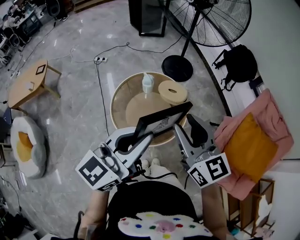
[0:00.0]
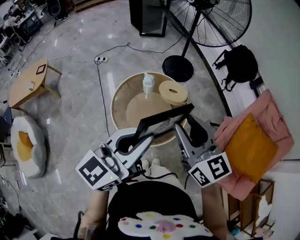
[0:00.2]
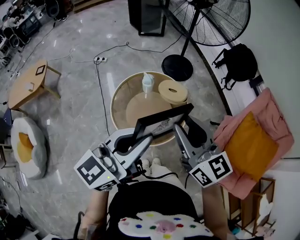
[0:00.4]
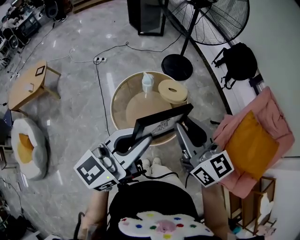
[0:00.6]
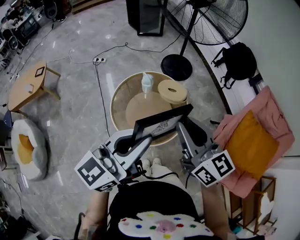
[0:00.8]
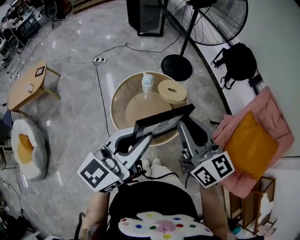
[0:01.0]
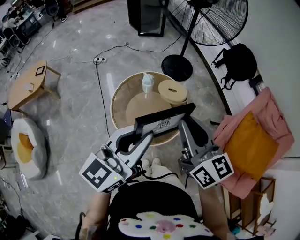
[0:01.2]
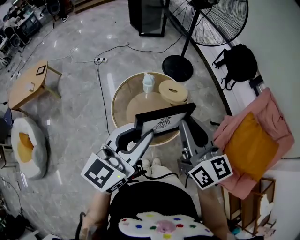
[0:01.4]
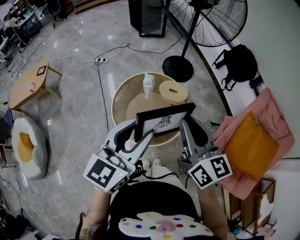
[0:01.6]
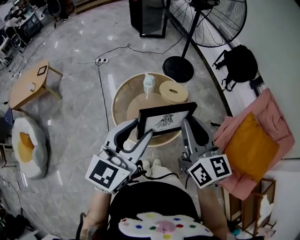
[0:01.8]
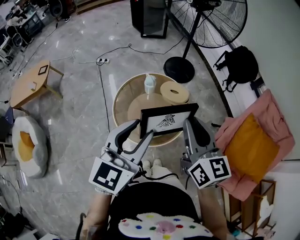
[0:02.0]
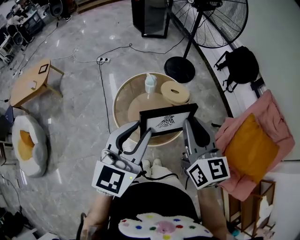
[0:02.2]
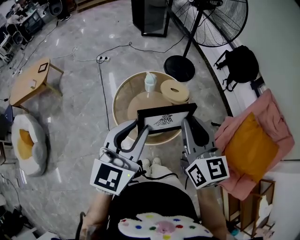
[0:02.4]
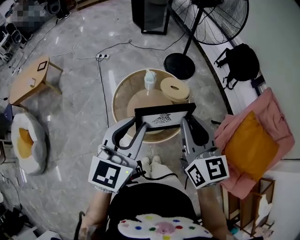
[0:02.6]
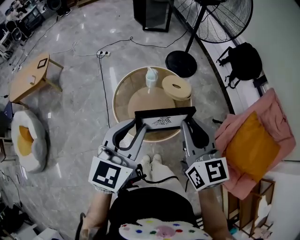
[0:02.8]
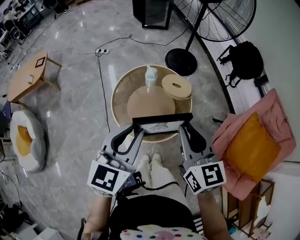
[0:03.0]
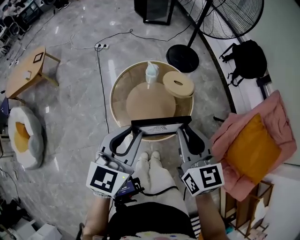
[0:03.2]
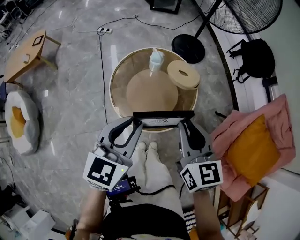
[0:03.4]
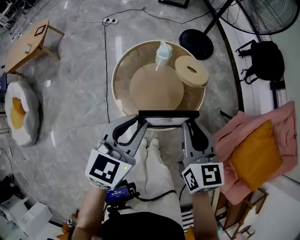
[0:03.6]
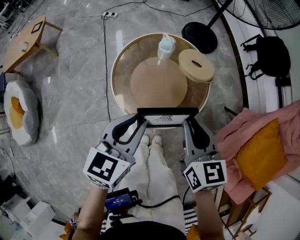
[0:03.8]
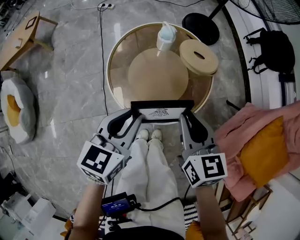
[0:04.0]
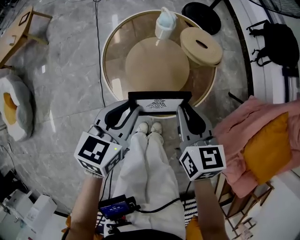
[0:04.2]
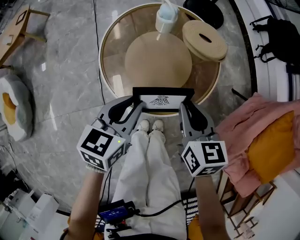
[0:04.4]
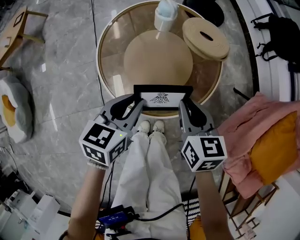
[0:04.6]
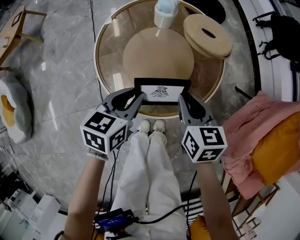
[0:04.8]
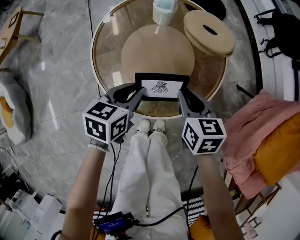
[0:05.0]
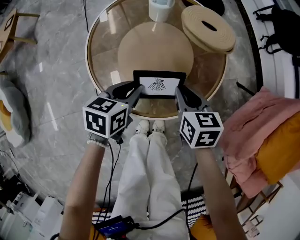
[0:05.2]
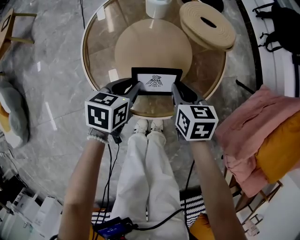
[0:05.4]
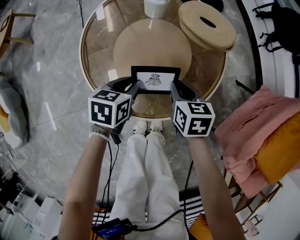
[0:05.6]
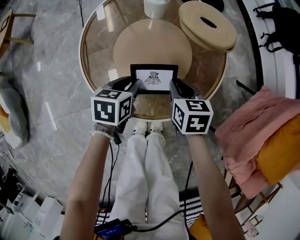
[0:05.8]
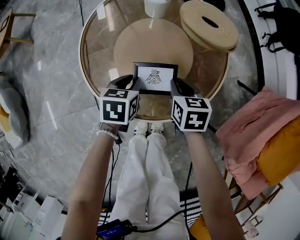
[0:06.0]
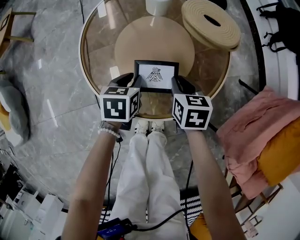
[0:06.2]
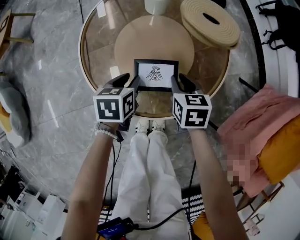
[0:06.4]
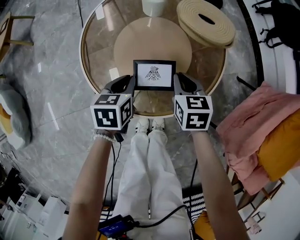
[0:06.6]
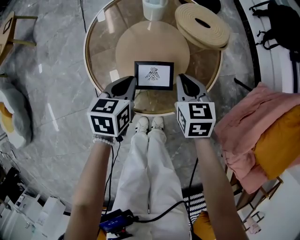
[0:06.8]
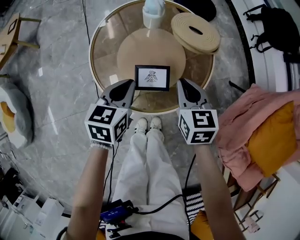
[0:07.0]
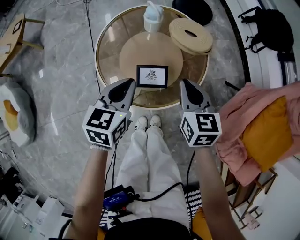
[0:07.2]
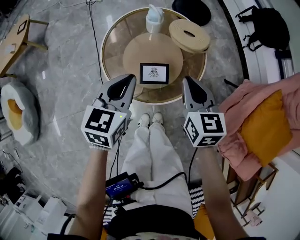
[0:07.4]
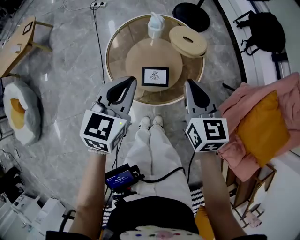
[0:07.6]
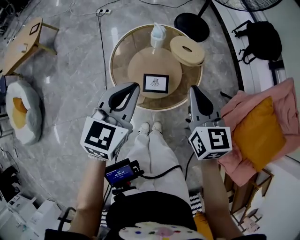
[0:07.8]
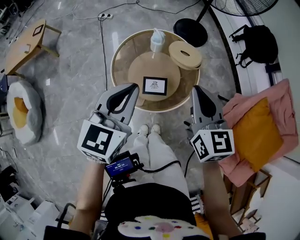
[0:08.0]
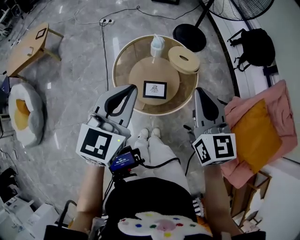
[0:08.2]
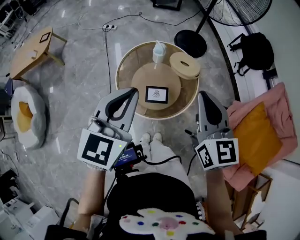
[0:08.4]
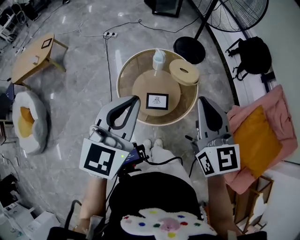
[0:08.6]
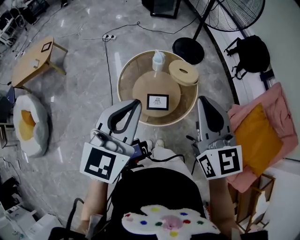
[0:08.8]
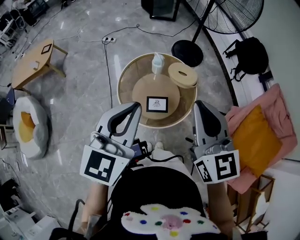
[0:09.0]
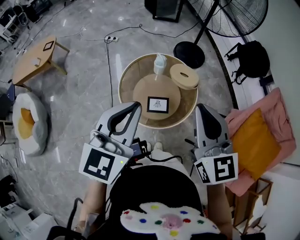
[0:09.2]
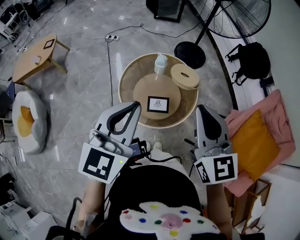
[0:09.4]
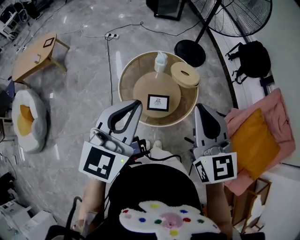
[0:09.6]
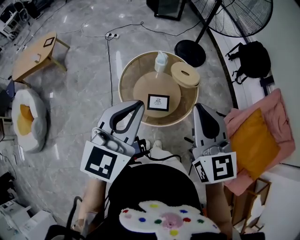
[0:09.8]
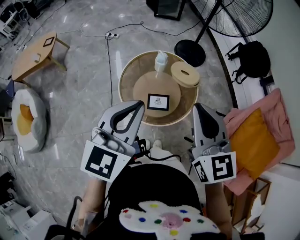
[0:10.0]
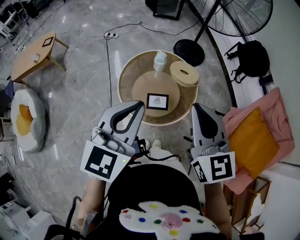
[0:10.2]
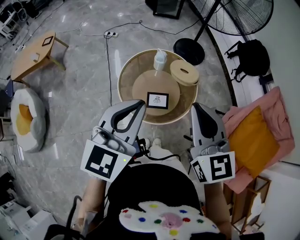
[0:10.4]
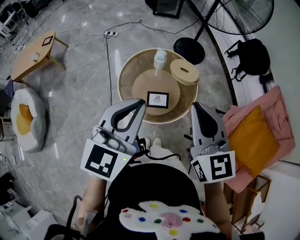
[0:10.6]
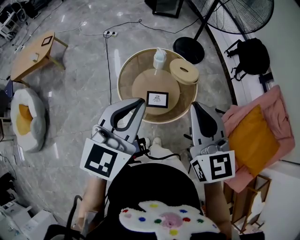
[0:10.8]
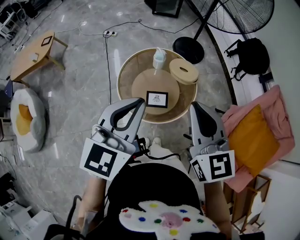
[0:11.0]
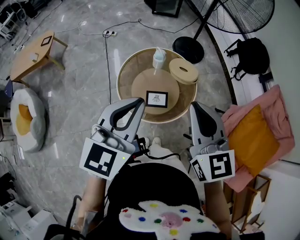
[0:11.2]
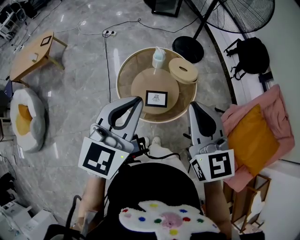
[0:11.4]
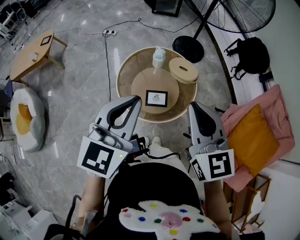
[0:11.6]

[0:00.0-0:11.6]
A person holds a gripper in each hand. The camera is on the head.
0:00.0 to 0:01.4: The right gripper closes.
0:01.4 to 0:02.8: The grippers make only small movements.
0:02.8 to 0:04.4: The grippers both shift downward by approximately 30 cm. The right gripper swivels about 30 degrees, while the left gripper swivels about 30 degrees.
0:04.4 to 0:05.8: Both grippers travel together downward, some 20 cm. The left gripper swivels about 20 degrees.
0:05.8 to 0:07.2: Both grippers move upward, some 20 cm. The left gripper rotates about 20 degrees, and closes its fingers.
0:07.2 to 0:08.8: The grippers both shift upward by about 30 cm. The left gripper turns by roughly 30 degrees. The right gripper turns by about 30 degrees.
0:08.8 to 0:10.2: The grippers move only a little.
0:10.2 to 0:11.6: Both grippers stay put.

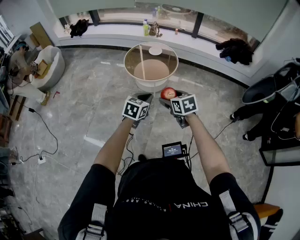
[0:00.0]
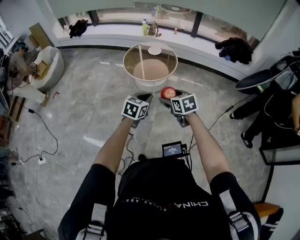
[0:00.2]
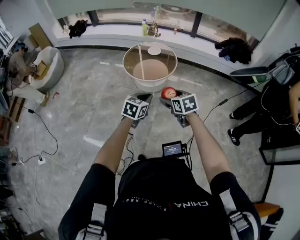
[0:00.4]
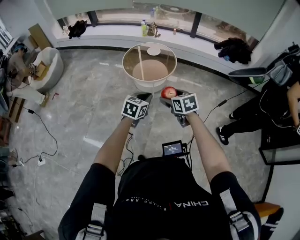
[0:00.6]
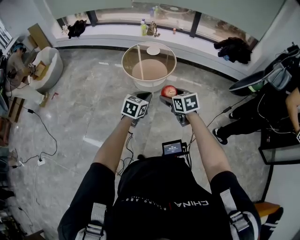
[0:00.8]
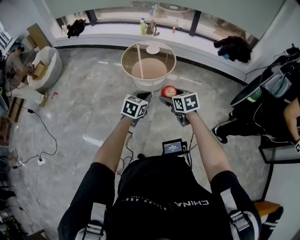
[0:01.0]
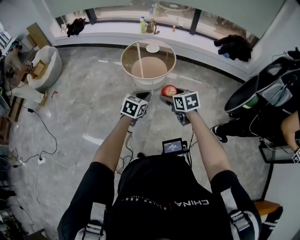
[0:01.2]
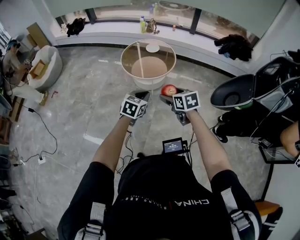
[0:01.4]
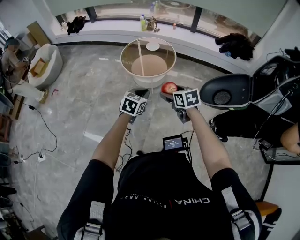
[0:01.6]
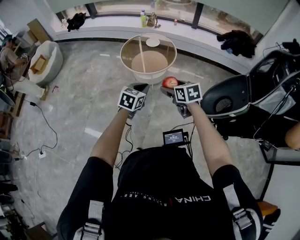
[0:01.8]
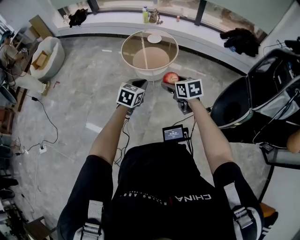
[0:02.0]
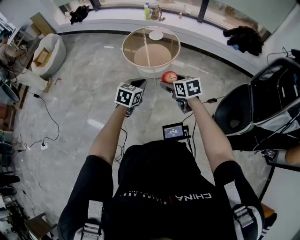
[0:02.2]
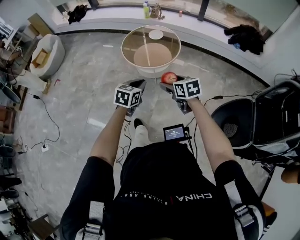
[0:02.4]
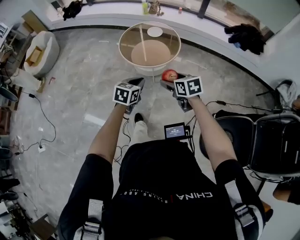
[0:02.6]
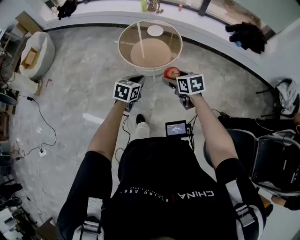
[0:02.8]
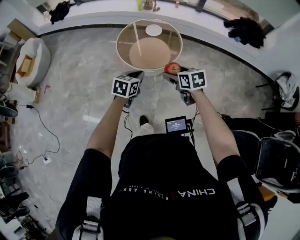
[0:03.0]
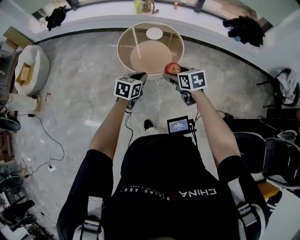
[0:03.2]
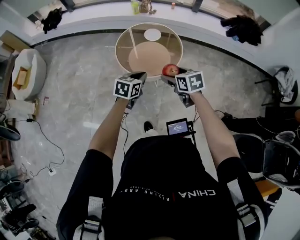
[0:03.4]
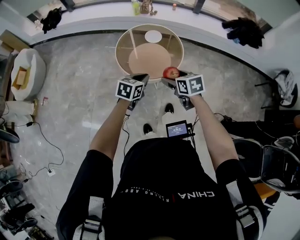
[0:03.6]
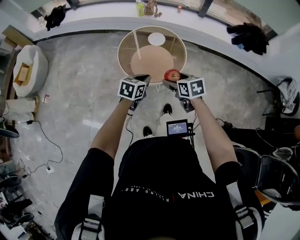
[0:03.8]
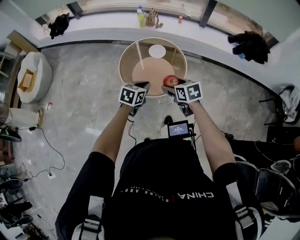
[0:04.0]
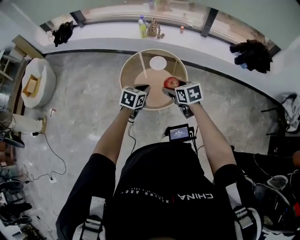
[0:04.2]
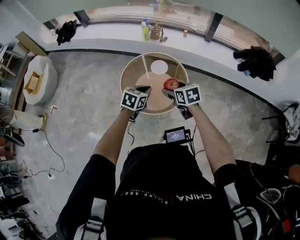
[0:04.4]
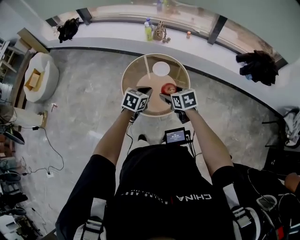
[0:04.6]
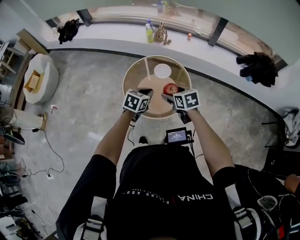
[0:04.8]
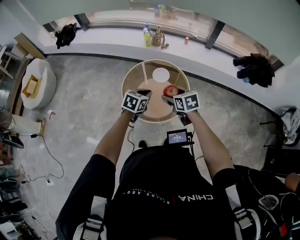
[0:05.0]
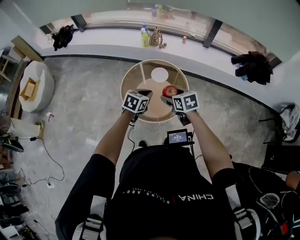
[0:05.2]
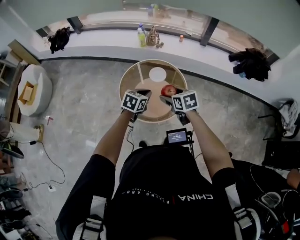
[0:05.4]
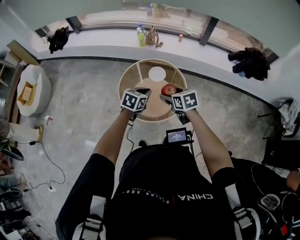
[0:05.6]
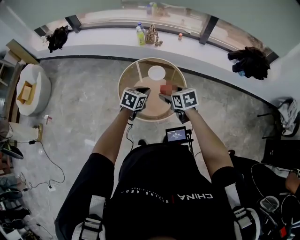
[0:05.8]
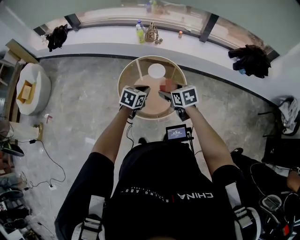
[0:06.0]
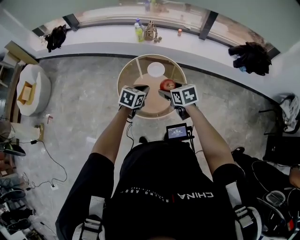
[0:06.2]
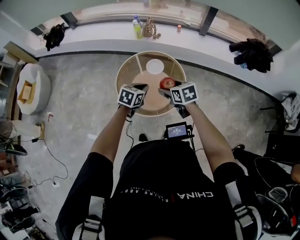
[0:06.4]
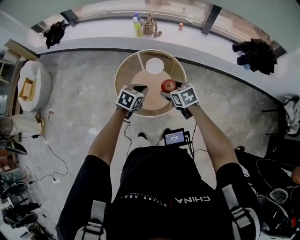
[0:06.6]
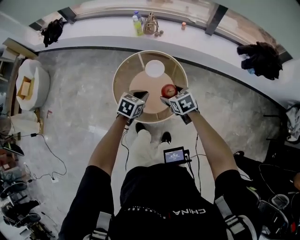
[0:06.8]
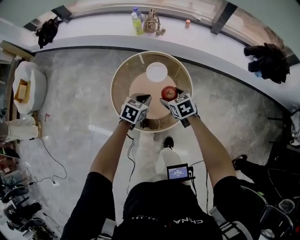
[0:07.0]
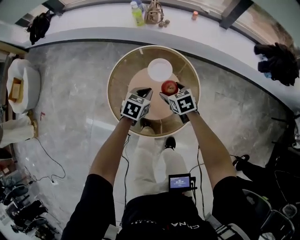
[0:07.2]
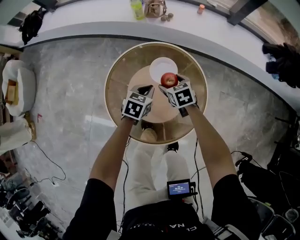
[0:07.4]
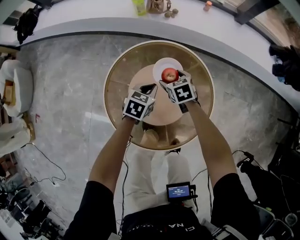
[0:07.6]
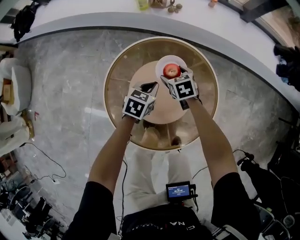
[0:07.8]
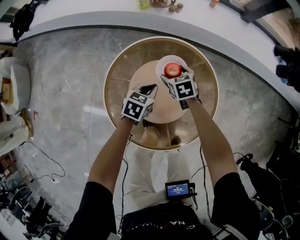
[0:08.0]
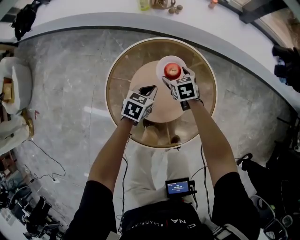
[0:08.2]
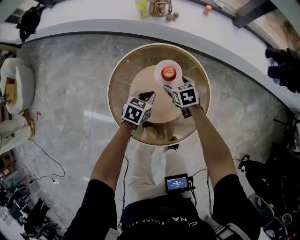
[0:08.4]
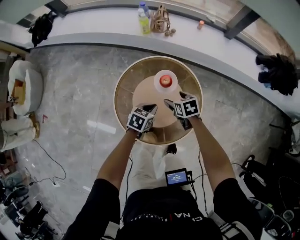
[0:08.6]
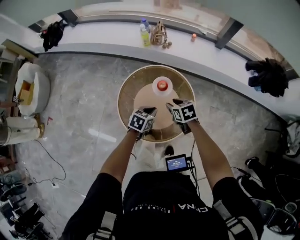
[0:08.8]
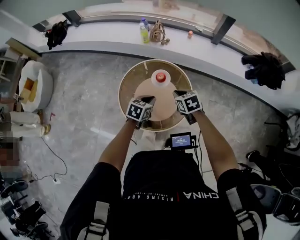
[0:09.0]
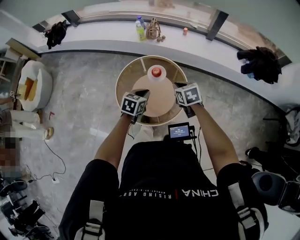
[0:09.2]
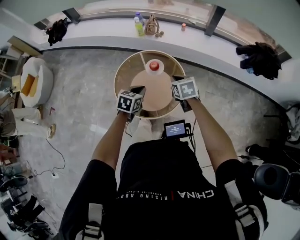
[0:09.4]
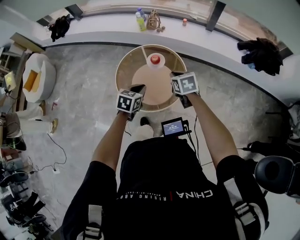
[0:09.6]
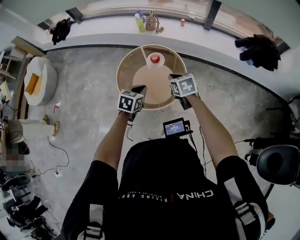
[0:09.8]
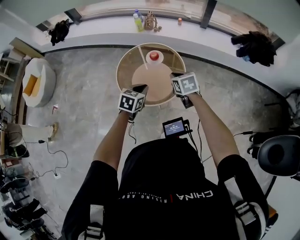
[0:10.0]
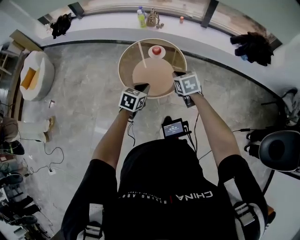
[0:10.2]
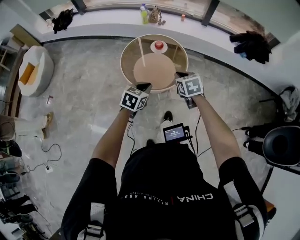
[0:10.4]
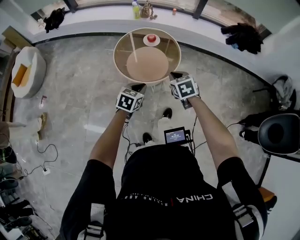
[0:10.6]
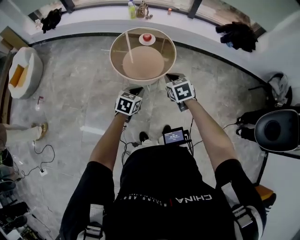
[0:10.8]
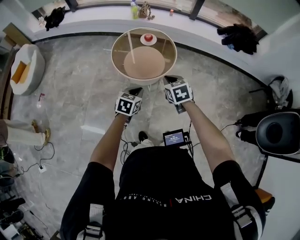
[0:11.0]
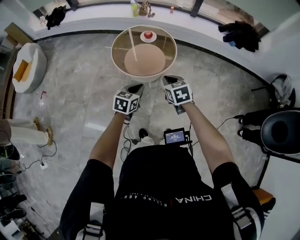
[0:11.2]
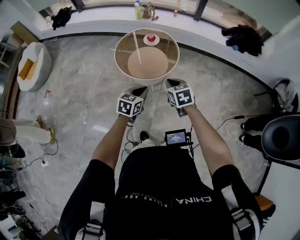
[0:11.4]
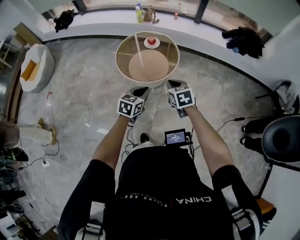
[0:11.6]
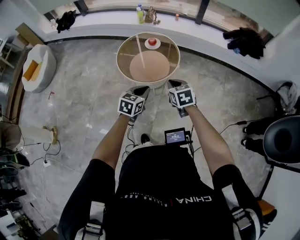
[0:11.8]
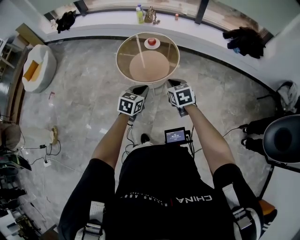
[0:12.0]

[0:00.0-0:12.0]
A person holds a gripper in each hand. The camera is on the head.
0:00.0 to 0:01.6: The right gripper ends up some 5 cm from where it was.
0:01.6 to 0:03.0: The two grippers go approximately 30 cm forward.
0:03.0 to 0:04.4: The grippers both shift forward by about 30 cm.
0:04.4 to 0:06.0: Both grippers move forward, roughly 5 cm.
0:06.0 to 0:07.6: The two grippers go some 60 cm downward and forward.
0:07.6 to 0:09.0: The grippers both shift upward and backward by roughly 40 cm. The right gripper closes up.
0:09.0 to 0:10.4: Both grippers travel together backward, approximately 35 cm.
0:10.4 to 0:12.0: Both grippers move backward and to the right, roughly 15 cm.
